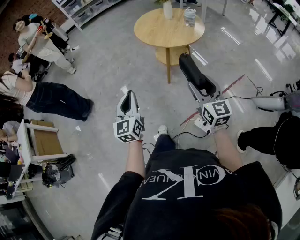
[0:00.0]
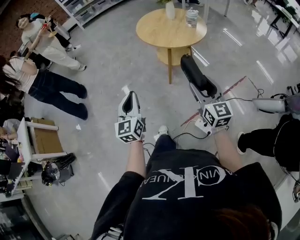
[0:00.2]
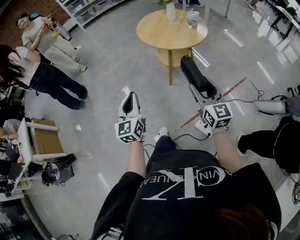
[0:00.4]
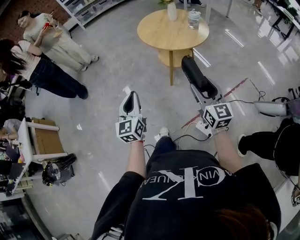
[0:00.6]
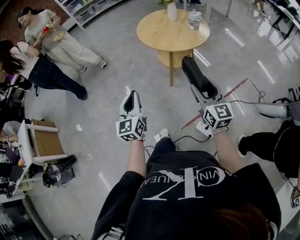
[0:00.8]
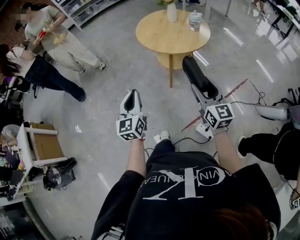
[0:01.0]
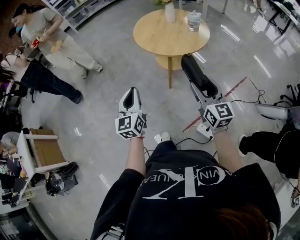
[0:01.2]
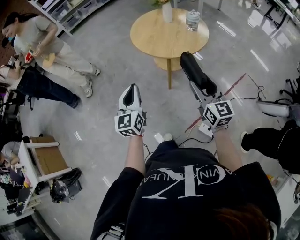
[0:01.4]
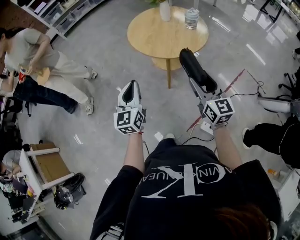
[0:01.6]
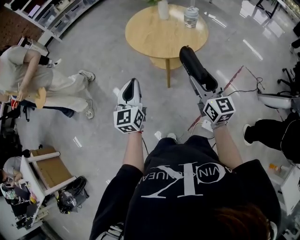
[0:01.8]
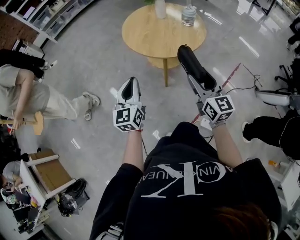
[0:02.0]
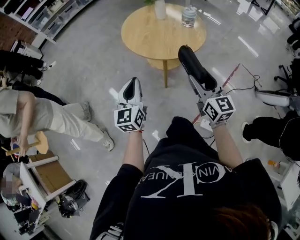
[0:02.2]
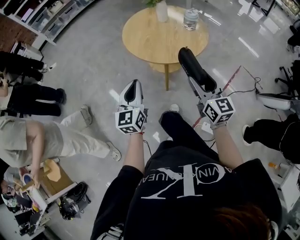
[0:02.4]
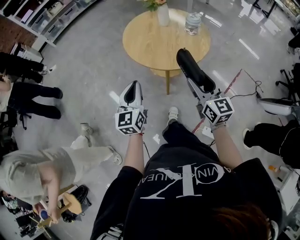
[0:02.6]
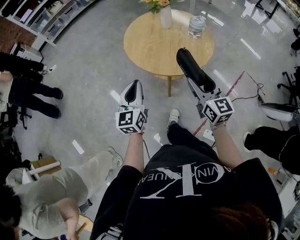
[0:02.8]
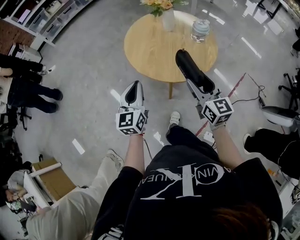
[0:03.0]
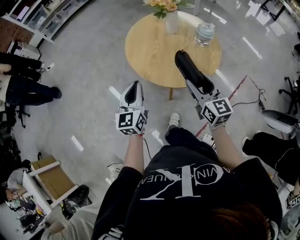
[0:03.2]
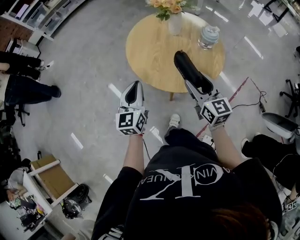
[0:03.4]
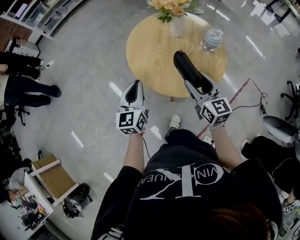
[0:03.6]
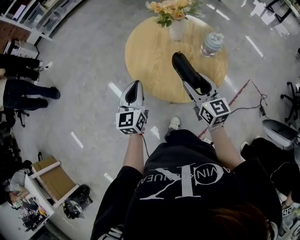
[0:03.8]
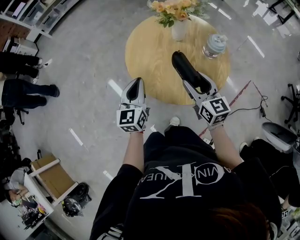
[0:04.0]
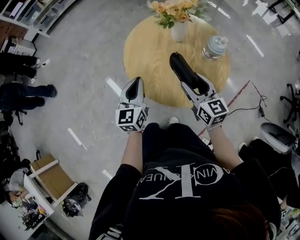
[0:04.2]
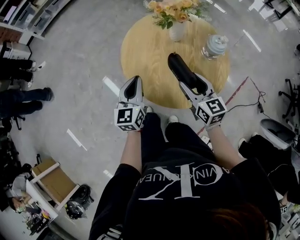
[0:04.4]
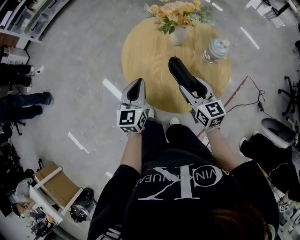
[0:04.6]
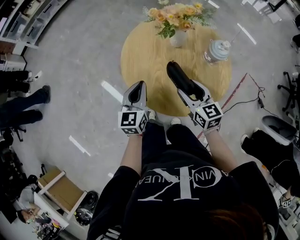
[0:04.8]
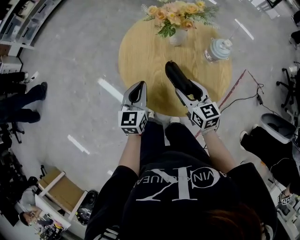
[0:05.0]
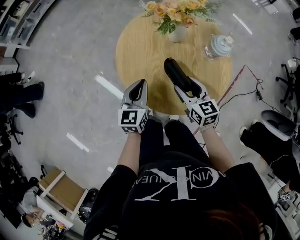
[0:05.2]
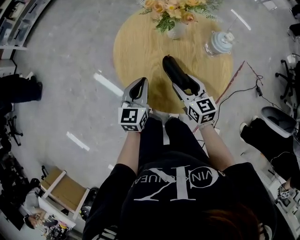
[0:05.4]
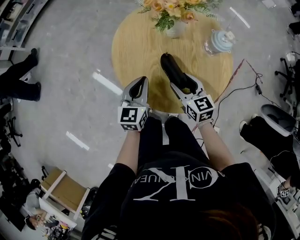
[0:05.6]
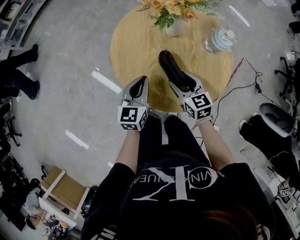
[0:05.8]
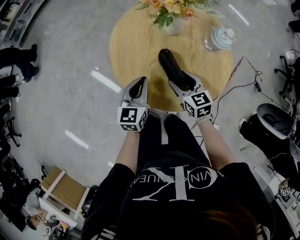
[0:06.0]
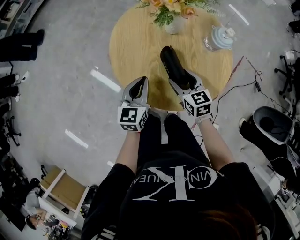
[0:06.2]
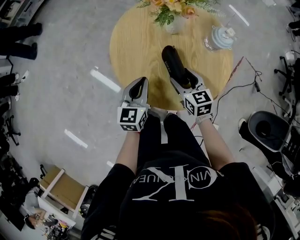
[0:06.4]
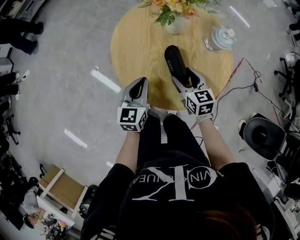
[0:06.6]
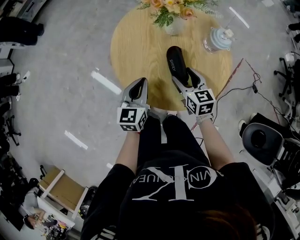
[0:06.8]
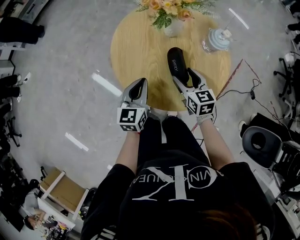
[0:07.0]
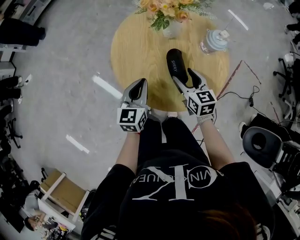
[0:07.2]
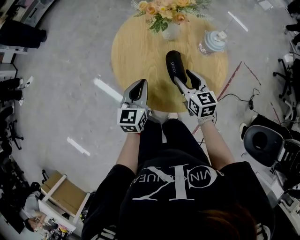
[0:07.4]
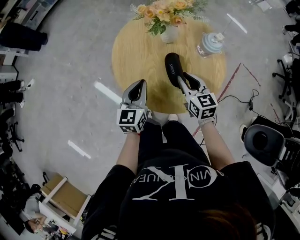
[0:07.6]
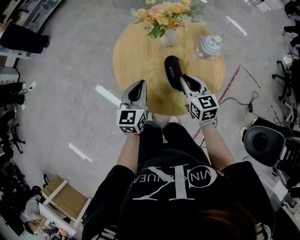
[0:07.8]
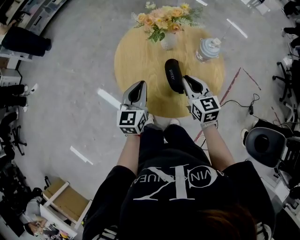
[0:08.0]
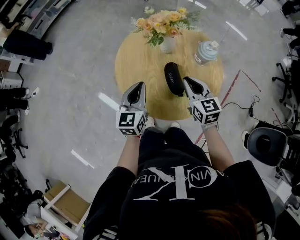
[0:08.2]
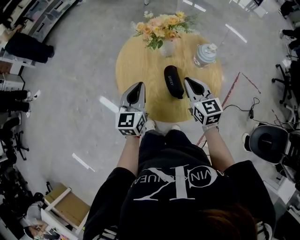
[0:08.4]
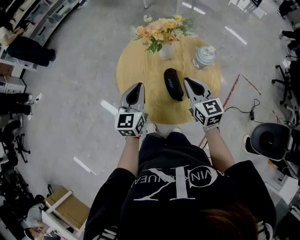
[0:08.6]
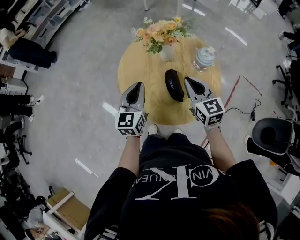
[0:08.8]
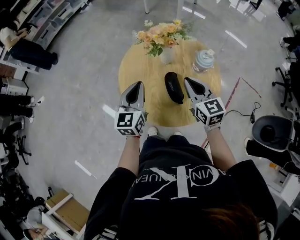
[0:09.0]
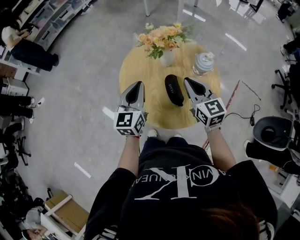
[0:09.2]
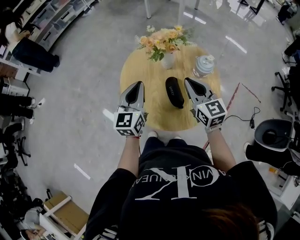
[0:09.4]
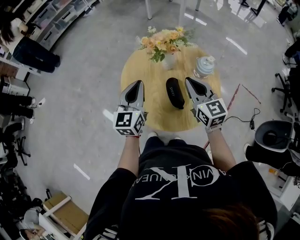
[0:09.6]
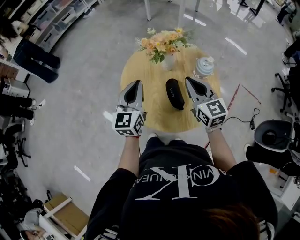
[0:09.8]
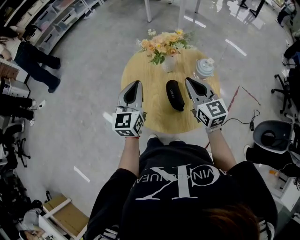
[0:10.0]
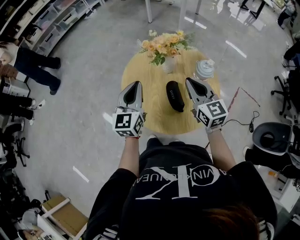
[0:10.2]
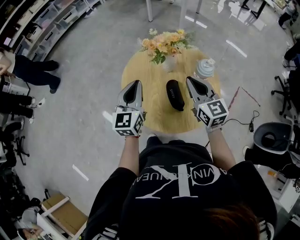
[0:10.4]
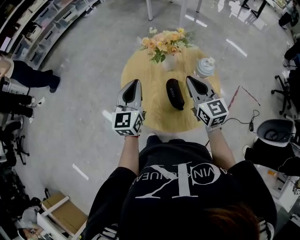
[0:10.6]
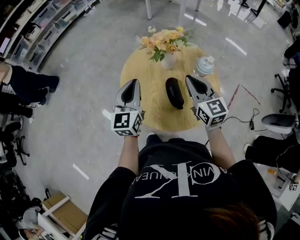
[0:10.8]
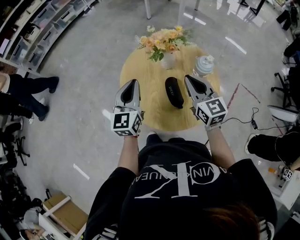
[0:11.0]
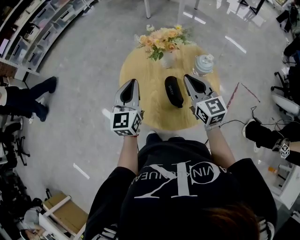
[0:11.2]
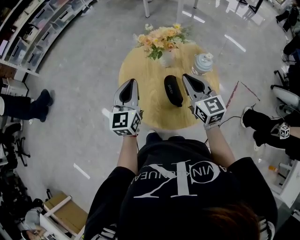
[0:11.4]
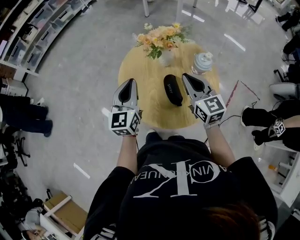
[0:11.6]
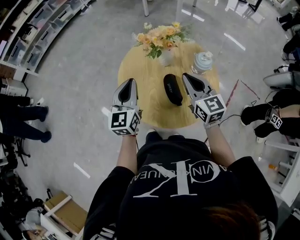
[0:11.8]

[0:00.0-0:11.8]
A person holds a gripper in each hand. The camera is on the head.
0:00.0 to 0:01.4: The two grippers go about 15 cm forward.
0:01.4 to 0:03.0: The grippers both shift forward by roughly 20 cm.
0:03.0 to 0:04.4: Both grippers travel together forward, some 20 cm.
0:04.4 to 0:06.0: Both grippers move downward, roughly 10 cm.
0:06.0 to 0:07.4: The right gripper changes place by roughly 5 cm.
0:07.4 to 0:08.8: Both grippers move upward, some 10 cm. The right gripper closes.
0:08.8 to 0:10.4: The two grippers go roughly 5 cm upward.
0:10.4 to 0:11.8: Both grippers stay about where they are.

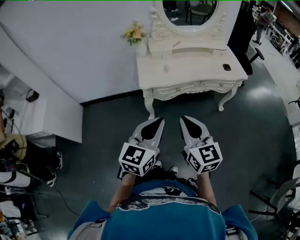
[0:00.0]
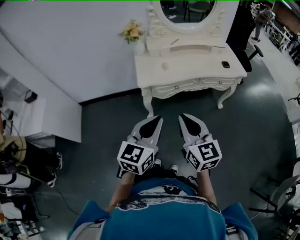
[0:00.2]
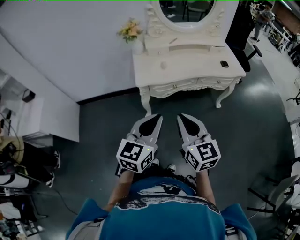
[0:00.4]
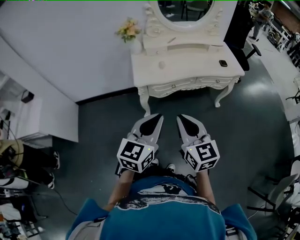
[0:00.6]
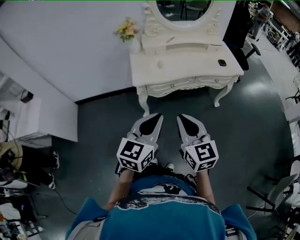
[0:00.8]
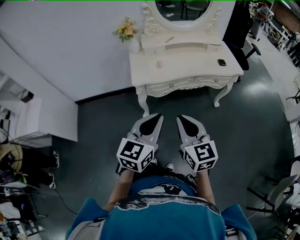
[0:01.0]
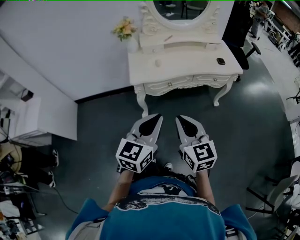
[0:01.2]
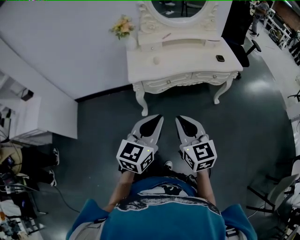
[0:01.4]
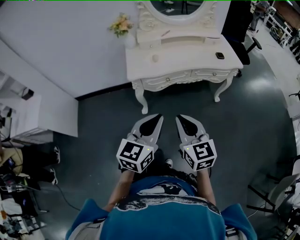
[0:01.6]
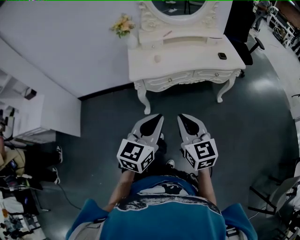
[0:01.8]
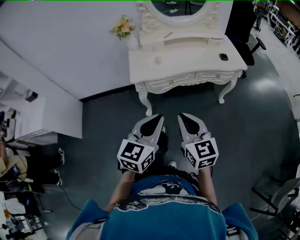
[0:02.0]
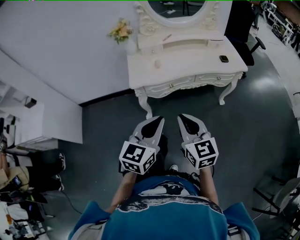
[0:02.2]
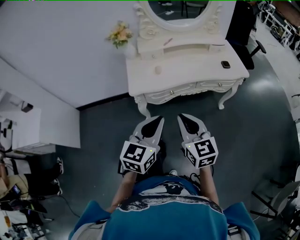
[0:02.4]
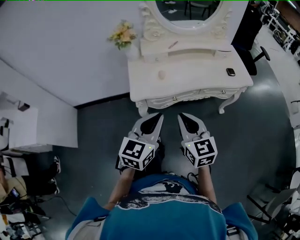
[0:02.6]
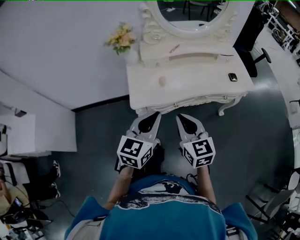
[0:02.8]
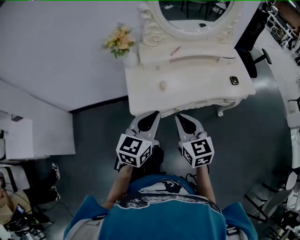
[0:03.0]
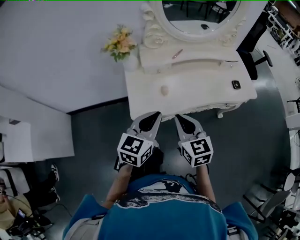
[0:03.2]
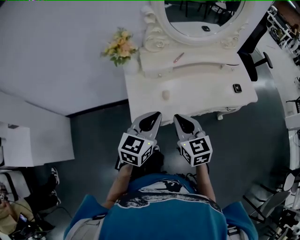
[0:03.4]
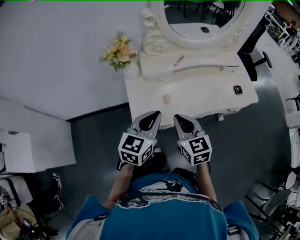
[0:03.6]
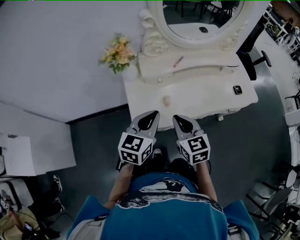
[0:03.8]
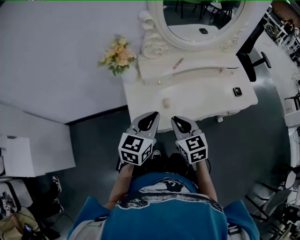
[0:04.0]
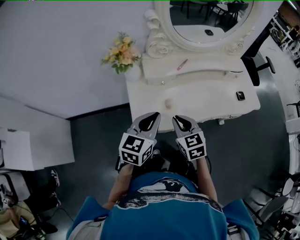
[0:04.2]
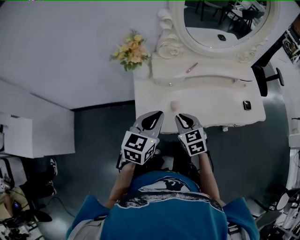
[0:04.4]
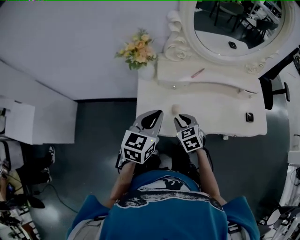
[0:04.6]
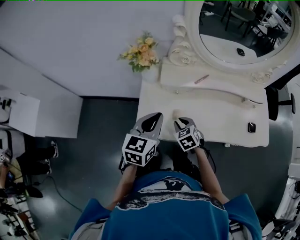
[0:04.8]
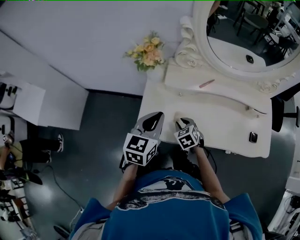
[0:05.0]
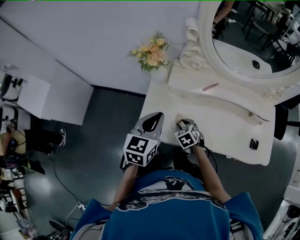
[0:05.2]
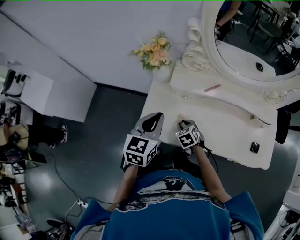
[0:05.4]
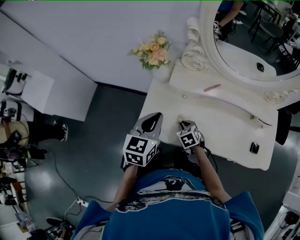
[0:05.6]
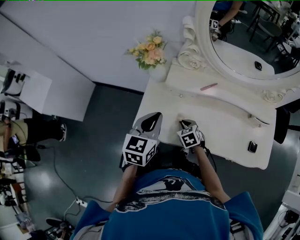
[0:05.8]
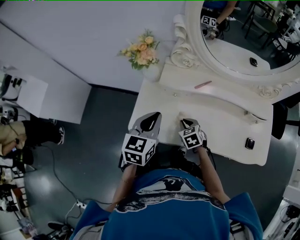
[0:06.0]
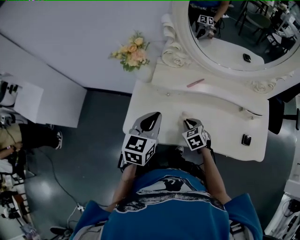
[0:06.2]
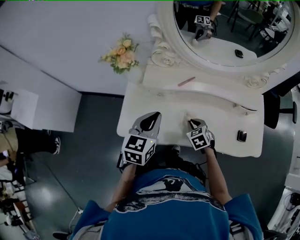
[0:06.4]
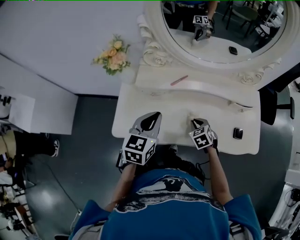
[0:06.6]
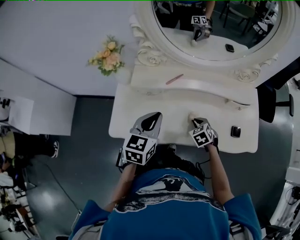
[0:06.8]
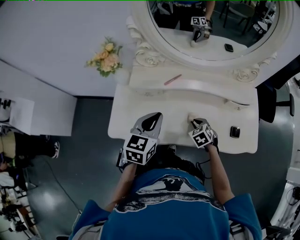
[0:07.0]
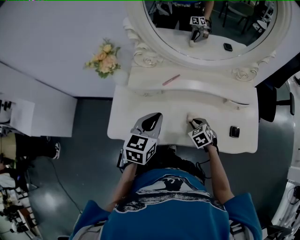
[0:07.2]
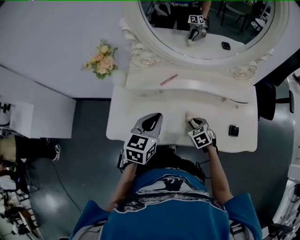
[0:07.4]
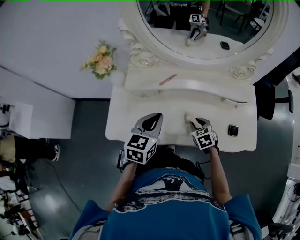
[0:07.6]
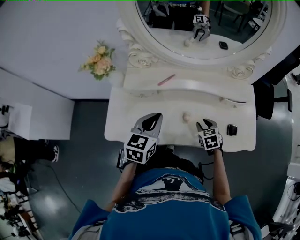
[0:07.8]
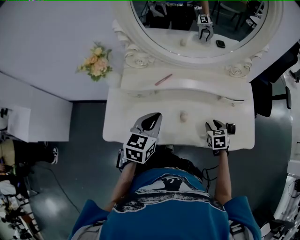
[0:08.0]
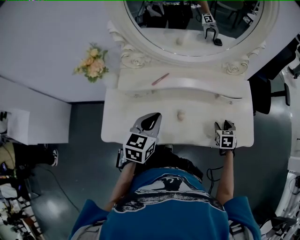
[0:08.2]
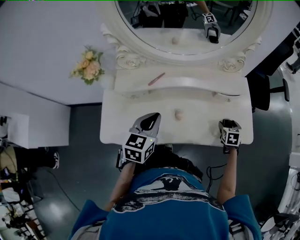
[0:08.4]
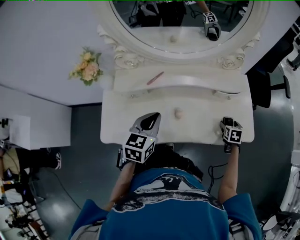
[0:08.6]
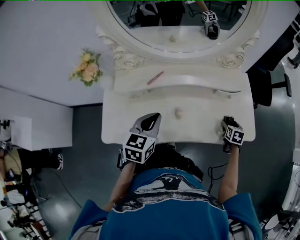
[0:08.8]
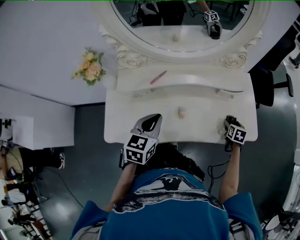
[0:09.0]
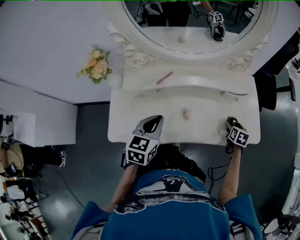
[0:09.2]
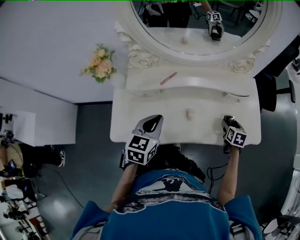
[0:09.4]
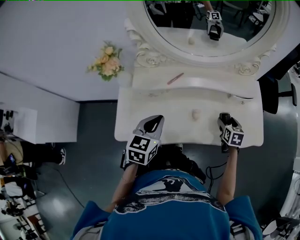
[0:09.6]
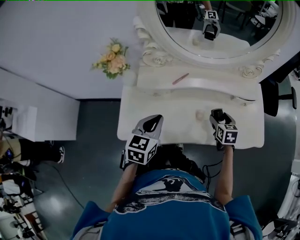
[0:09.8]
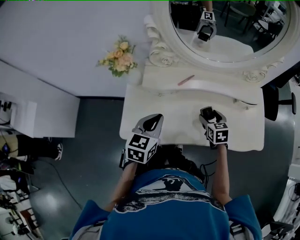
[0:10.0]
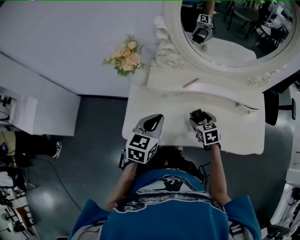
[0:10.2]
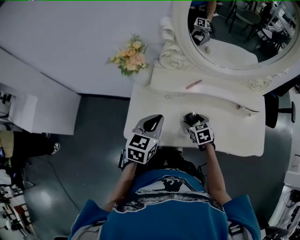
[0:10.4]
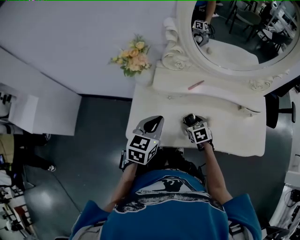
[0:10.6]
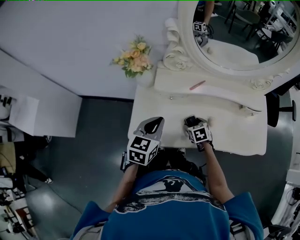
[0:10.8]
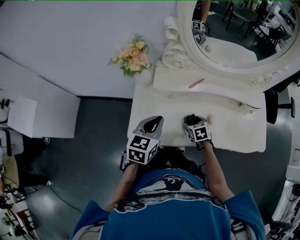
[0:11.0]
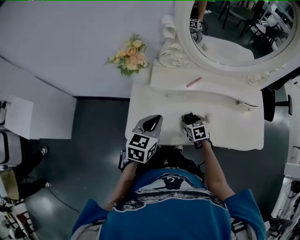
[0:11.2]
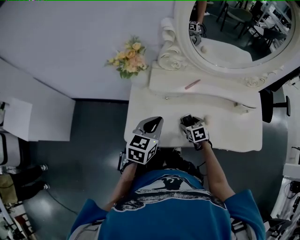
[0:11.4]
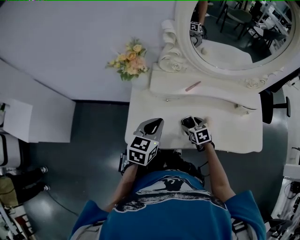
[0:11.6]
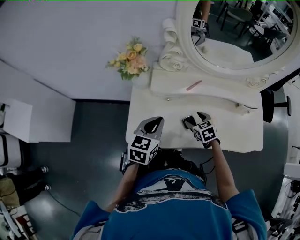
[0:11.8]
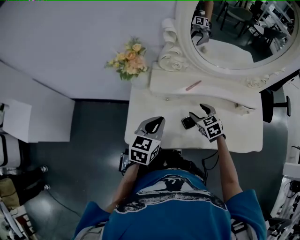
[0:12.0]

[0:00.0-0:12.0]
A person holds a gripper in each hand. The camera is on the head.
0:00.0 to 0:01.6: The right gripper travels to the right and downward by approximately 10 cm, while the left gripper heads to the right, covering approximately 5 cm.
0:01.6 to 0:03.0: The two grippers go some 30 cm forward.
0:03.0 to 0:04.4: The left gripper shifts some 15 cm forward. The right gripper moves forward and downward, about 20 cm, and swivels about 20 degrees.
0:04.4 to 0:06.0: The right gripper goes approximately 10 cm downward, and rotates some 20 degrees, while the left gripper moves about 5 cm, and swivels roughly 30 degrees.
0:06.0 to 0:07.6: Both grippers move to the right, approximately 20 cm.
0:07.6 to 0:09.0: The right gripper moves to the right, about 25 cm, twists approximately 40 degrees clockwise, seen from behind, and opens.
0:09.0 to 0:10.4: The right gripper shifts by approximately 40 cm, and swivels roughly 50 degrees. Meanwhile the left gripper changes place by some 15 cm.
0:10.4 to 0:12.0: The right gripper moves upward, approximately 5 cm.
